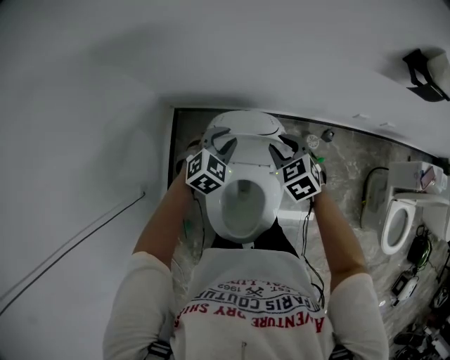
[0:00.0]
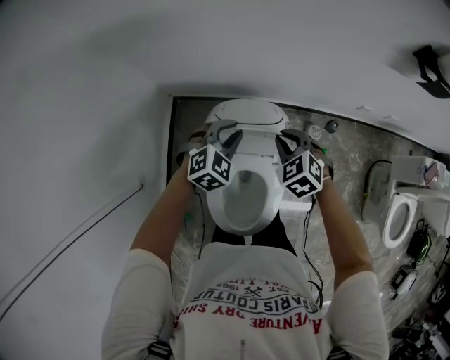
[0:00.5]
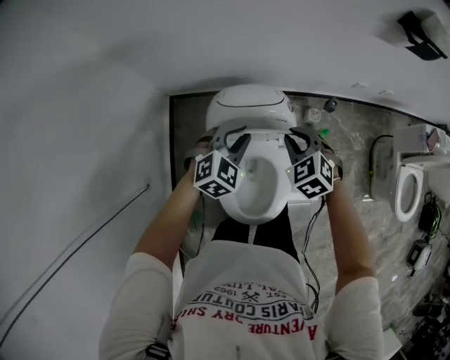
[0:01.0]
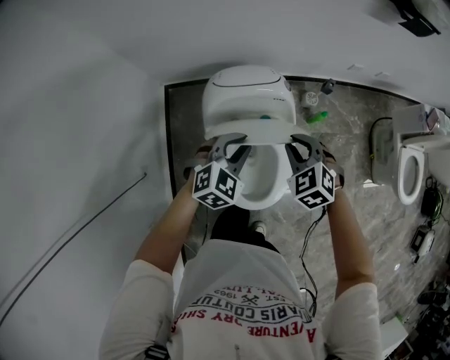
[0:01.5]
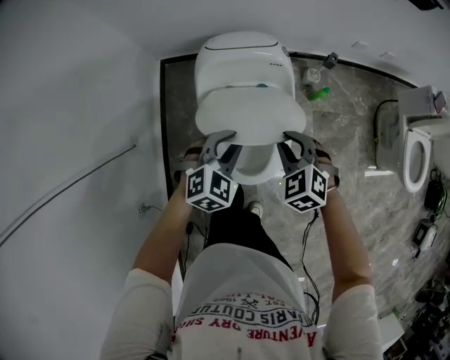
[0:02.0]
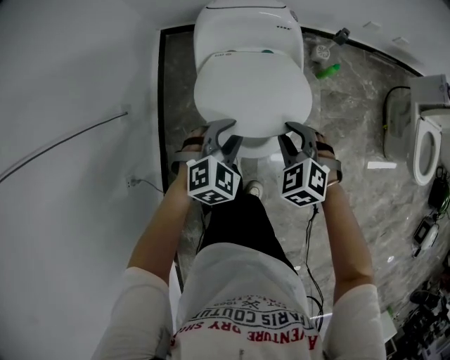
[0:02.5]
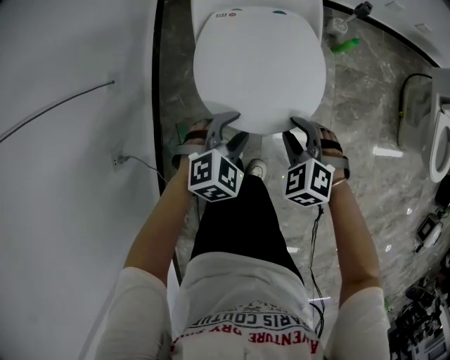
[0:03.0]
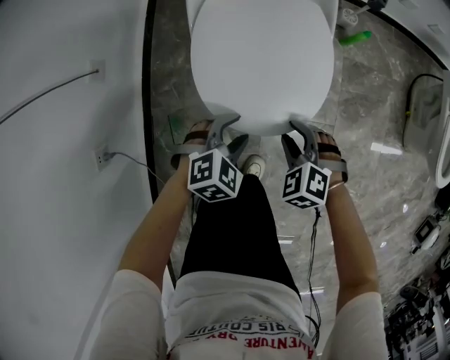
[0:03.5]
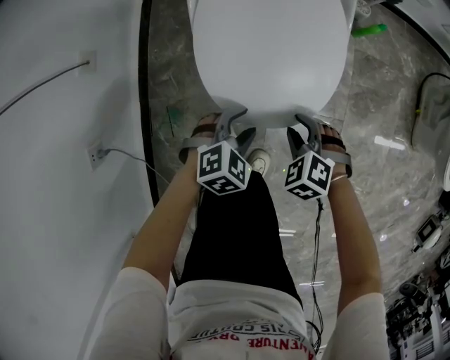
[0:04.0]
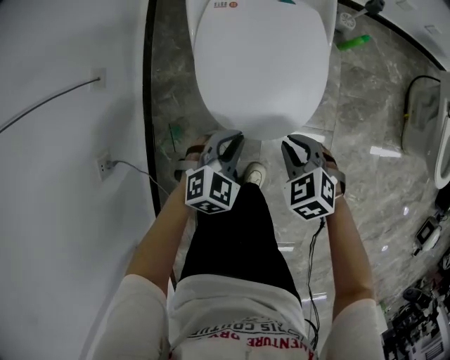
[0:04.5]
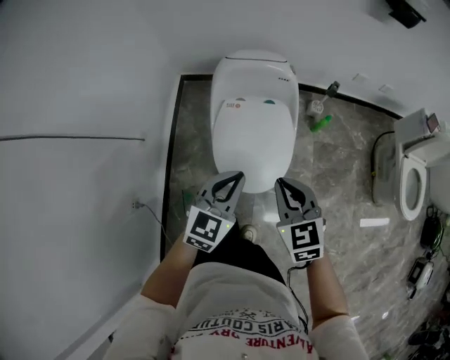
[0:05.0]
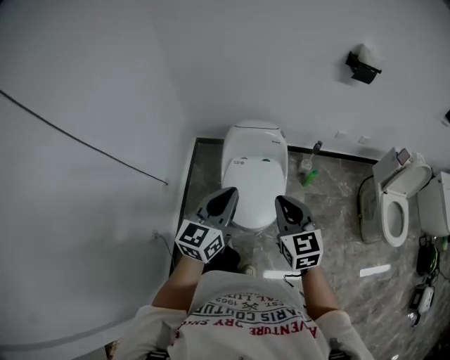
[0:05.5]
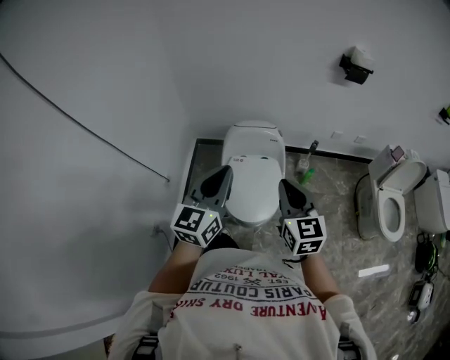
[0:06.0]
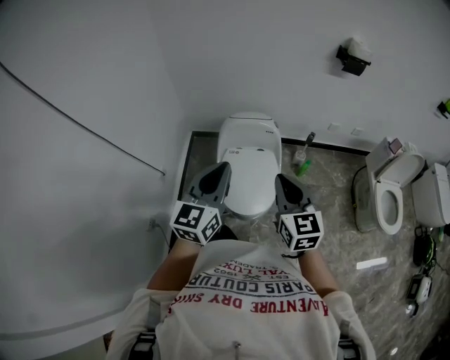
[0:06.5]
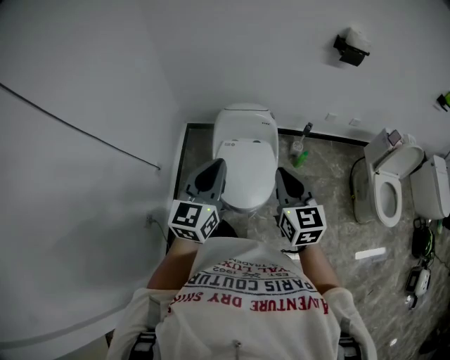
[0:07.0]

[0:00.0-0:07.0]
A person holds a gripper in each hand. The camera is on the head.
0:00.0 to 0:02.0: The two grippers go about 30 cm backward.
0:02.0 to 0:03.5: Both grippers move downward and backward, approximately 35 cm. The left gripper opens.
0:03.5 to 0:05.0: The grippers both shift upward by roughly 35 cm. The right gripper tips its fingers upward by approximately 30 degrees, and closes. The left gripper points its fingers approximately 40 degrees further upward, and closes up.
0:05.0 to 0:07.0: The two grippers go approximately 25 cm upward. The left gripper changes its angle by approximately 20 degrees; the right gripper turns by roughly 20 degrees.

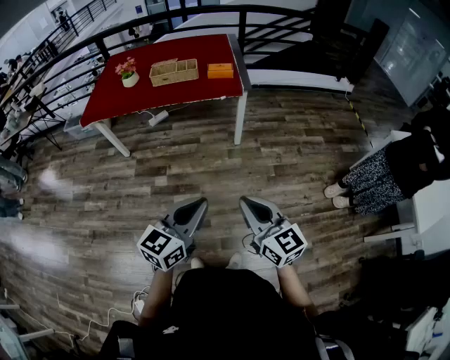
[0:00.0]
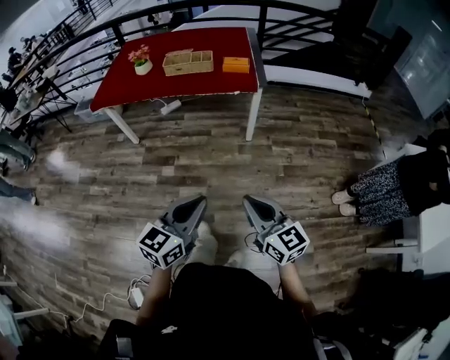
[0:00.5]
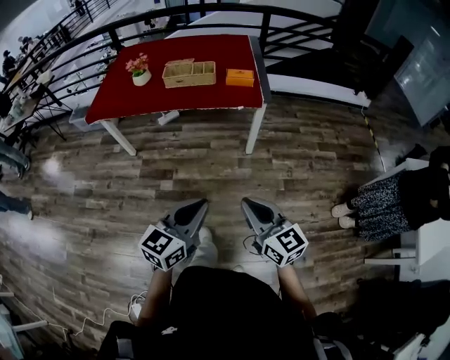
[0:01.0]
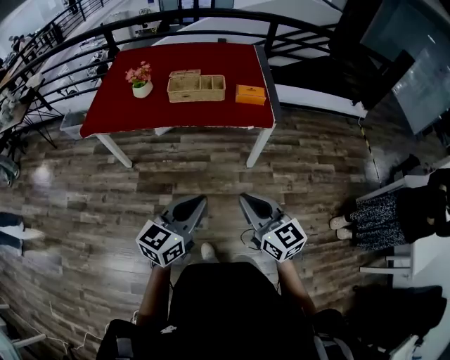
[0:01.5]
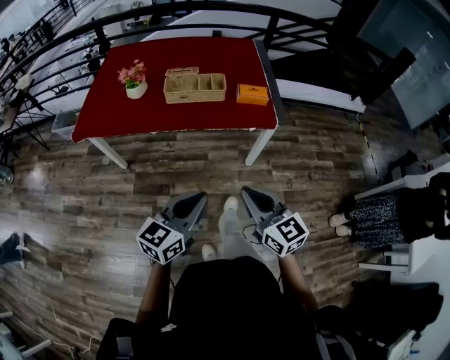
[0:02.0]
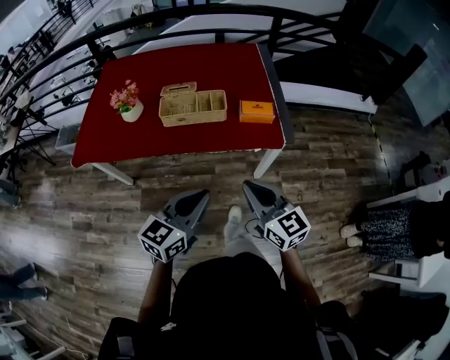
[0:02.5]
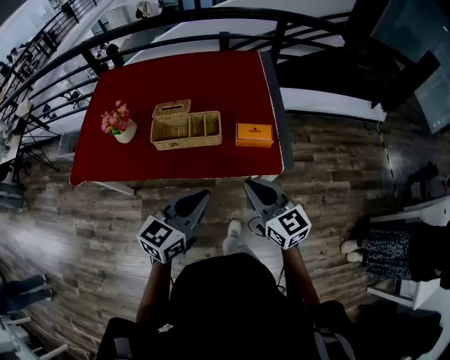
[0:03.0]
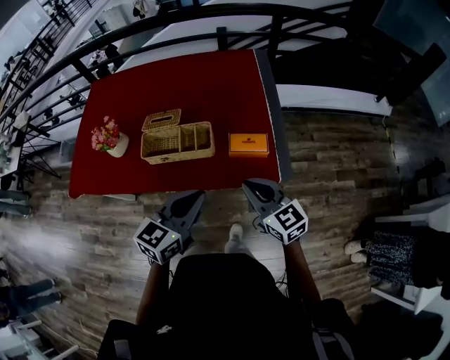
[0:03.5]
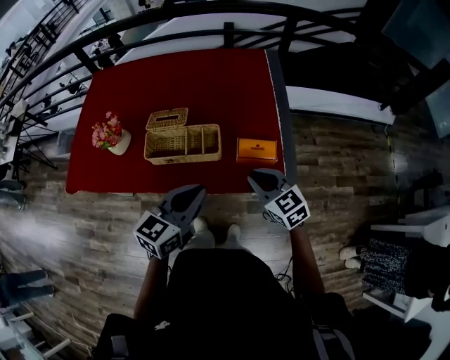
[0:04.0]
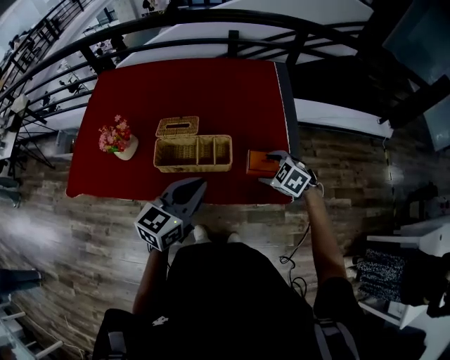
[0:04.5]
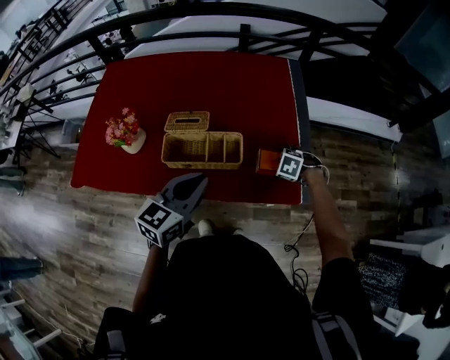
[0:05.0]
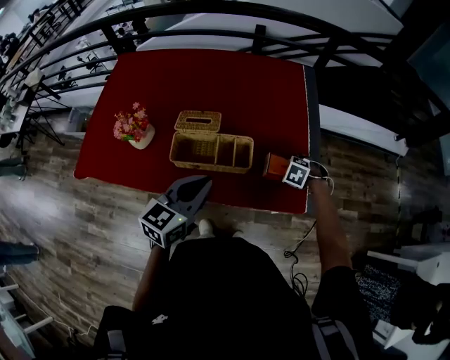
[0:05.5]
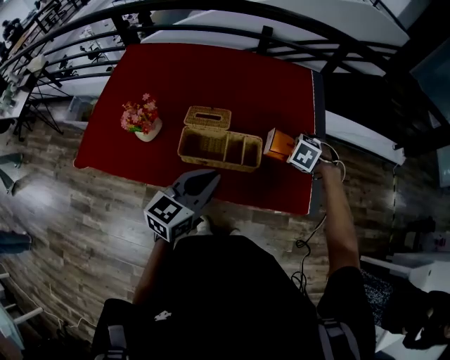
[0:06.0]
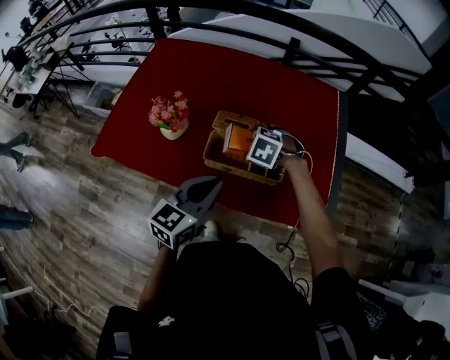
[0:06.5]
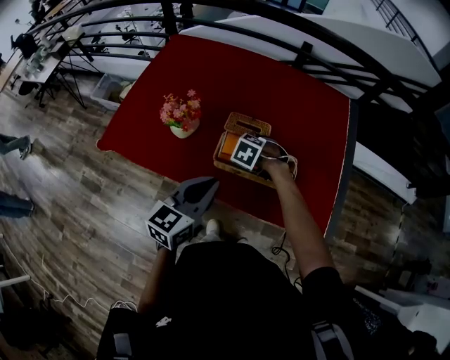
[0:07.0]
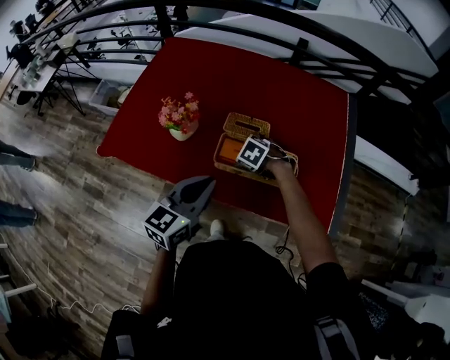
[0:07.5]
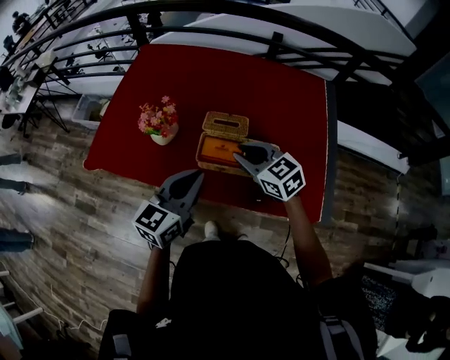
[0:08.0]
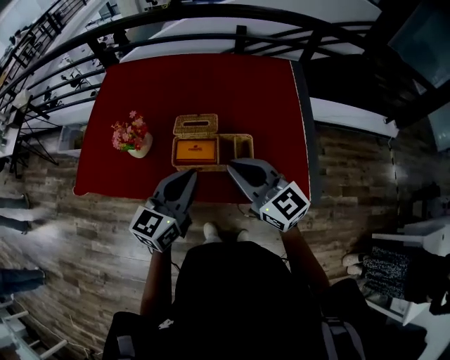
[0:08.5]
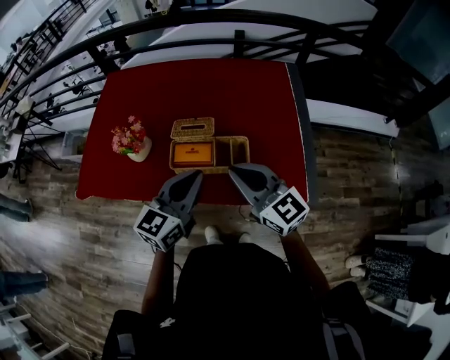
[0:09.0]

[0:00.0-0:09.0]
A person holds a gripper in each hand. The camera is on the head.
0:00.0 to 0:02.0: Both grippers travel together forward and to the left, roughly 40 cm.
0:02.0 to 0:04.5: Both grippers are carried forward, approximately 50 cm. The right gripper tilts its fingers approximately 50 degrees downward, and opens up.
0:04.5 to 0:07.0: The left gripper changes place by roughly 20 cm, and swivels approximately 20 degrees; the right gripper goes up and down, some 15 cm each way, reversing 2 times, and turns by roughly 30 degrees.
0:07.0 to 0:09.0: The right gripper shifts about 25 cm upward, points its fingers roughly 70 degrees further upward, and closes up. The left gripper shifts by roughly 10 cm.

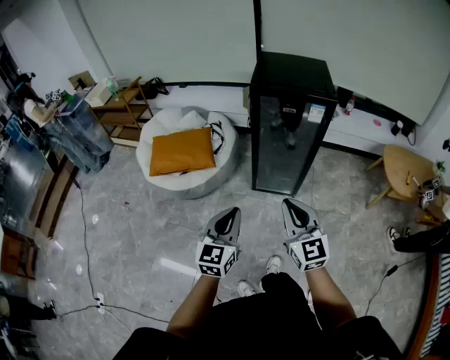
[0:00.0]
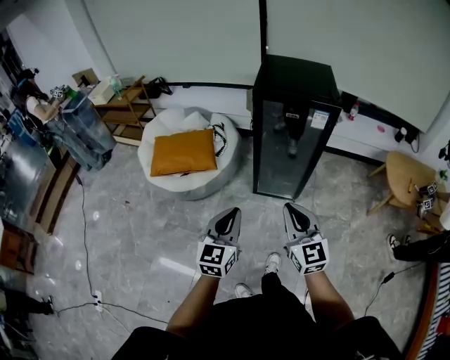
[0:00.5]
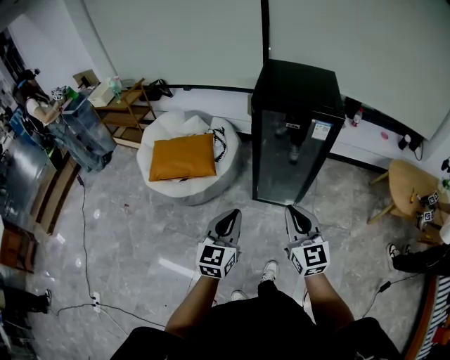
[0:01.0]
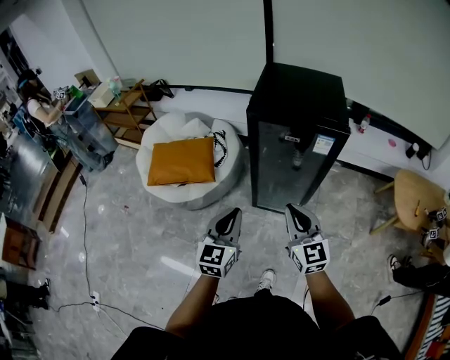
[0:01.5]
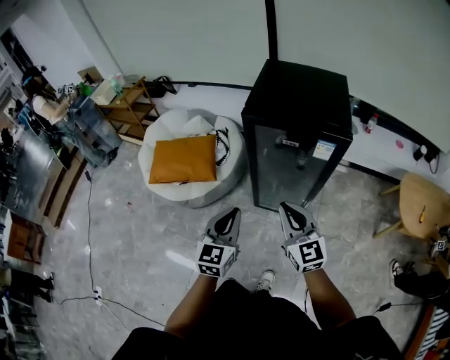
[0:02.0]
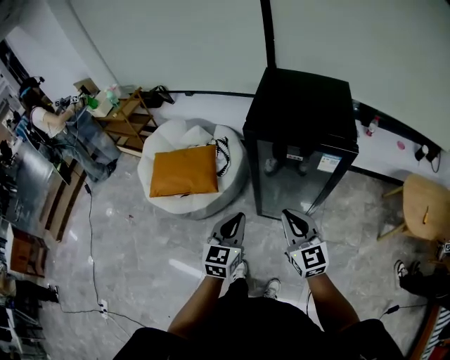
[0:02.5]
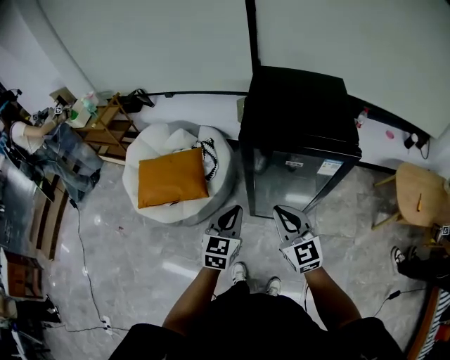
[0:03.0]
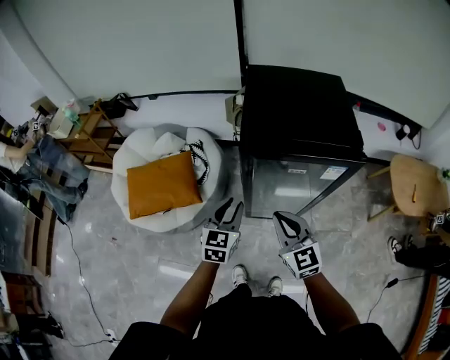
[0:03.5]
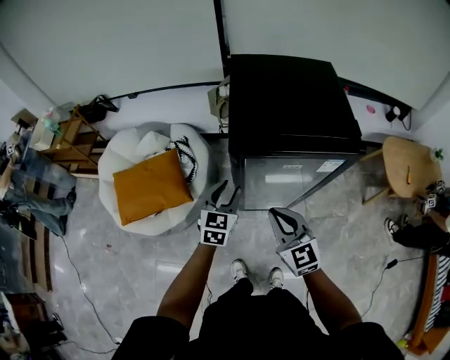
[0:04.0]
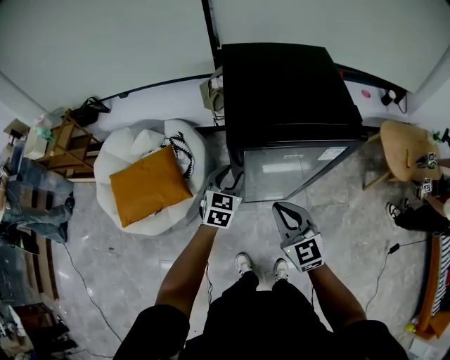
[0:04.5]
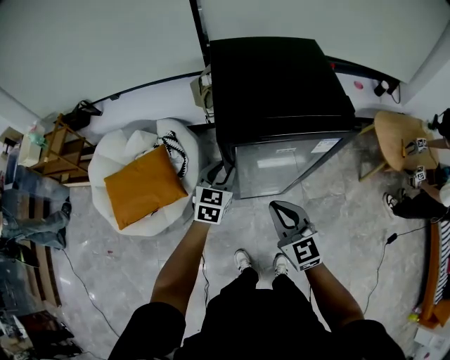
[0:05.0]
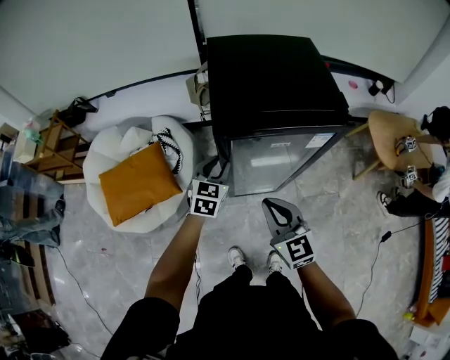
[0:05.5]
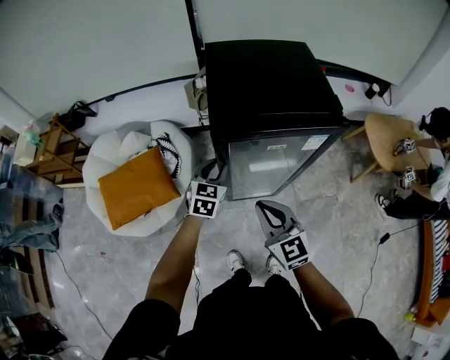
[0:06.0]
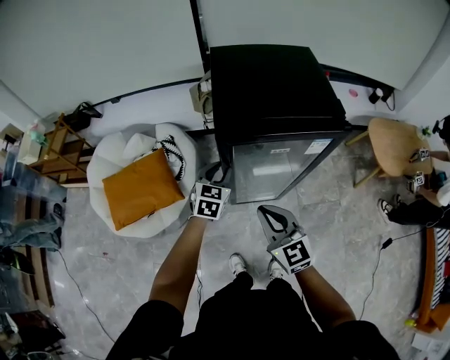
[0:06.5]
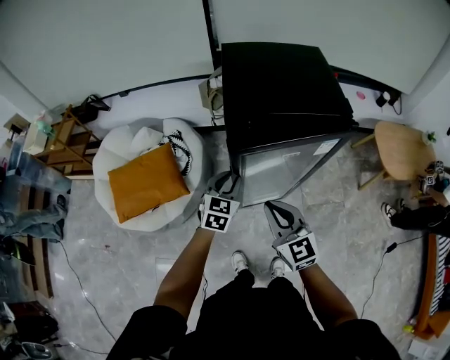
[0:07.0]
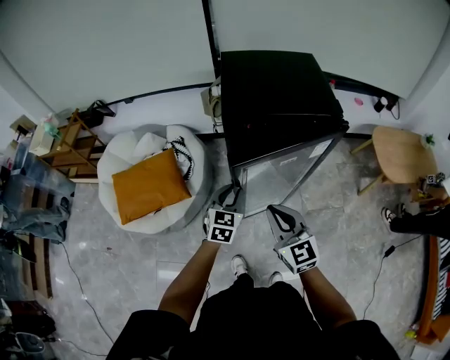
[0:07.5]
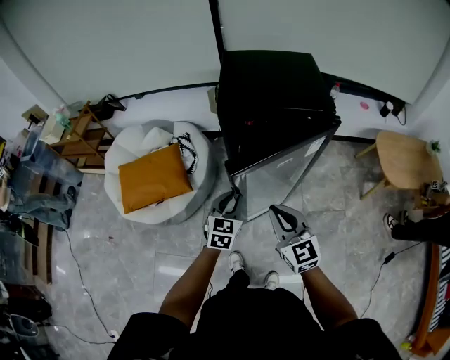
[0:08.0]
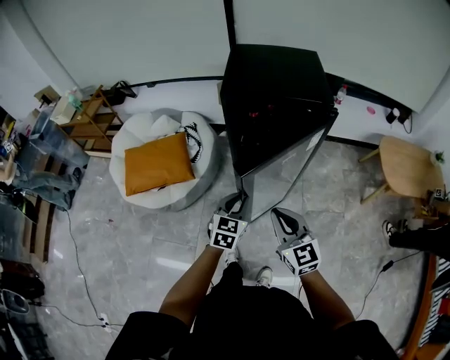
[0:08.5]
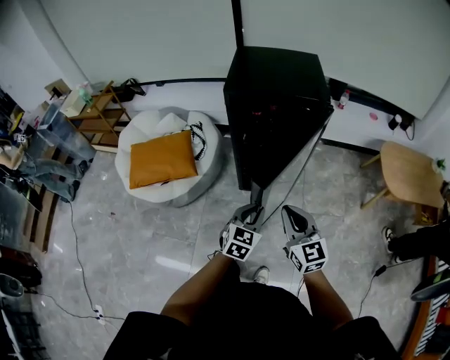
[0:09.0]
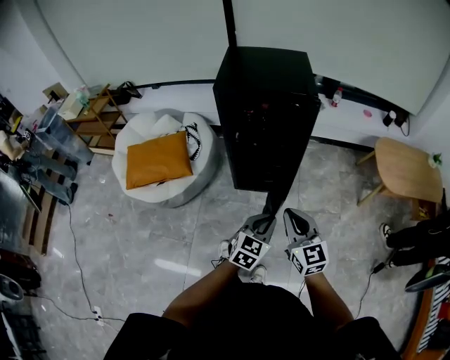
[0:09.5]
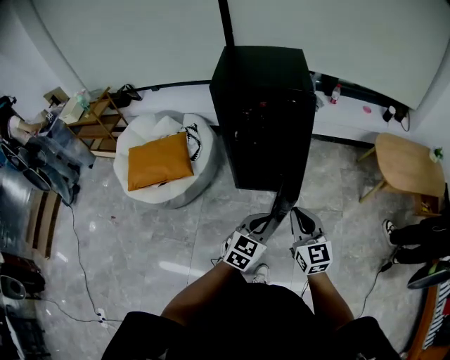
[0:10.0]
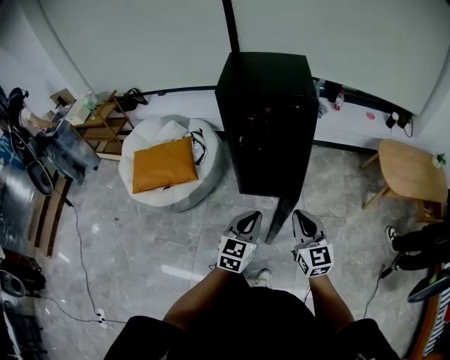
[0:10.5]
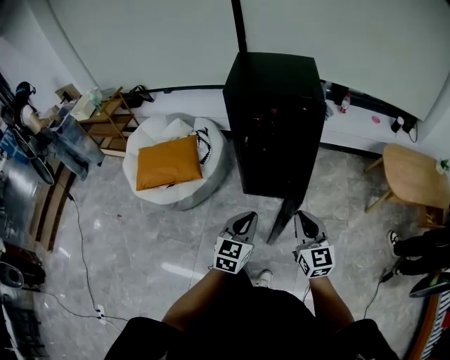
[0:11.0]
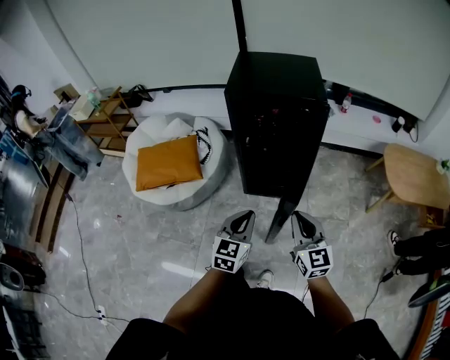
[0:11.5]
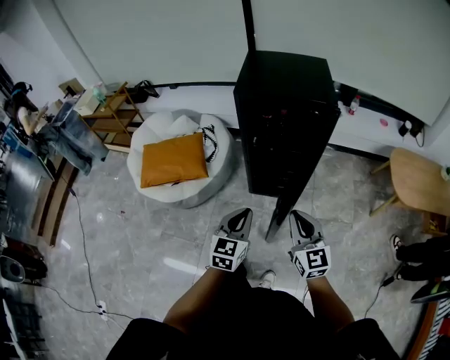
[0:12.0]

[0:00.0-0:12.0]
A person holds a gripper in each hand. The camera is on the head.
0:00.0 to 0:02.0: The left gripper shifts about 20 cm forward and to the right. The right gripper moves forward, approximately 20 cm.
0:02.0 to 0:04.0: The right gripper goes about 15 cm forward, to the left and downward. The left gripper is displaced forward by approximately 25 cm, changes its angle by some 20 degrees, and opens.
0:04.0 to 0:06.0: There are only small adjustments of the grippers.
0:06.0 to 0:08.0: The right gripper goes approximately 10 cm backward and to the right; the left gripper is displaced backward by about 15 cm.
0:08.0 to 0:10.0: The left gripper is displaced backward and to the right by about 25 cm. The right gripper is displaced to the right and backward by some 20 cm.
0:10.0 to 0:12.0: The left gripper shifts approximately 15 cm to the left, and swivels some 20 degrees; the right gripper travels to the left by approximately 5 cm.
